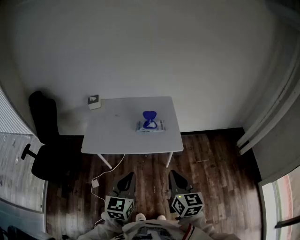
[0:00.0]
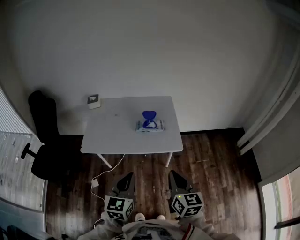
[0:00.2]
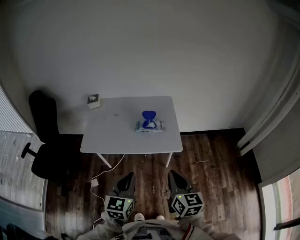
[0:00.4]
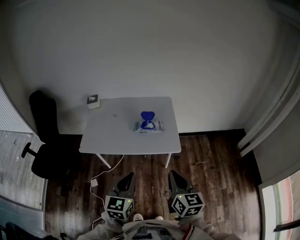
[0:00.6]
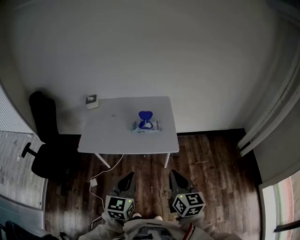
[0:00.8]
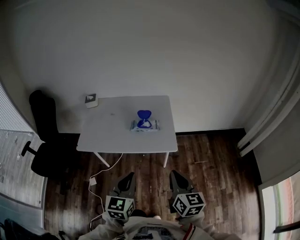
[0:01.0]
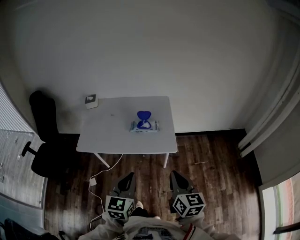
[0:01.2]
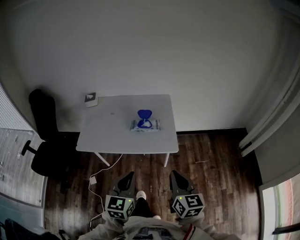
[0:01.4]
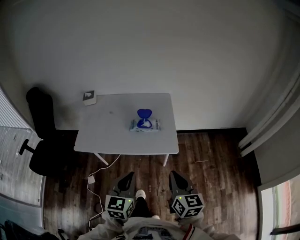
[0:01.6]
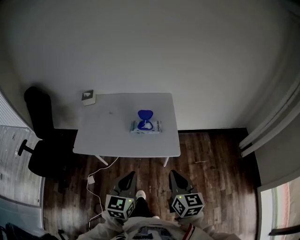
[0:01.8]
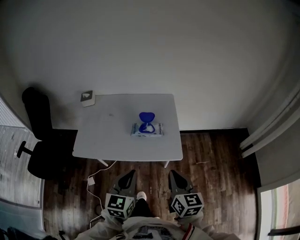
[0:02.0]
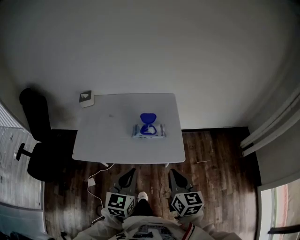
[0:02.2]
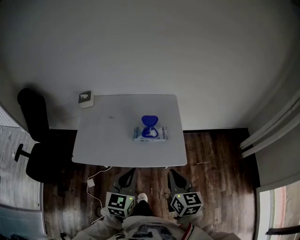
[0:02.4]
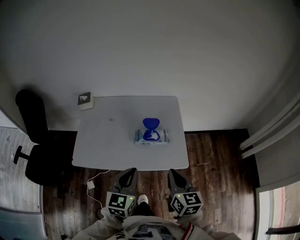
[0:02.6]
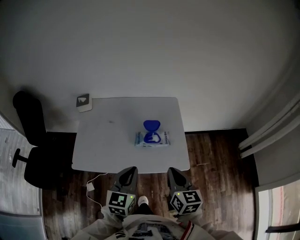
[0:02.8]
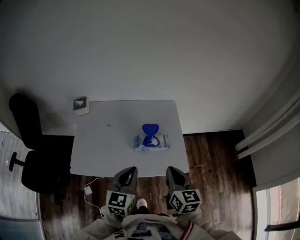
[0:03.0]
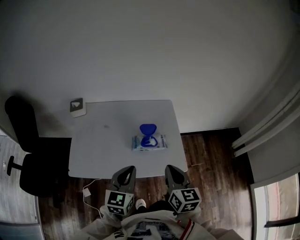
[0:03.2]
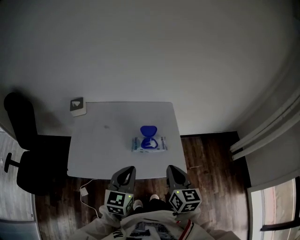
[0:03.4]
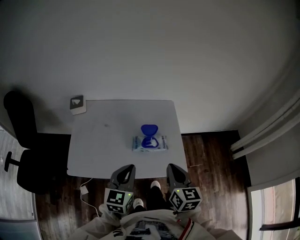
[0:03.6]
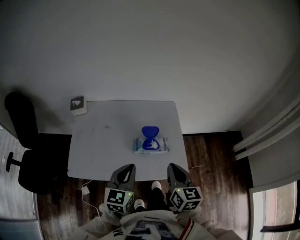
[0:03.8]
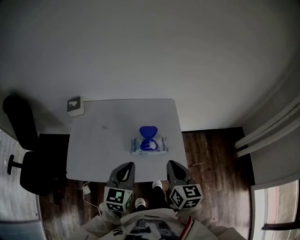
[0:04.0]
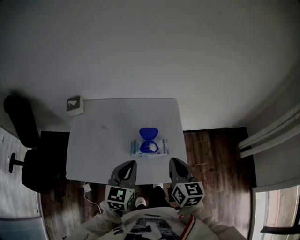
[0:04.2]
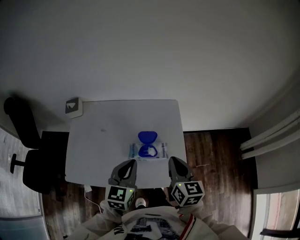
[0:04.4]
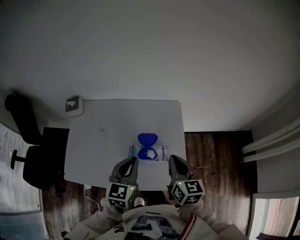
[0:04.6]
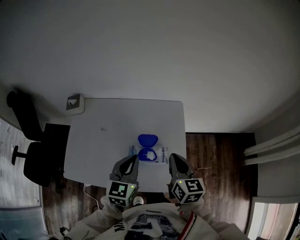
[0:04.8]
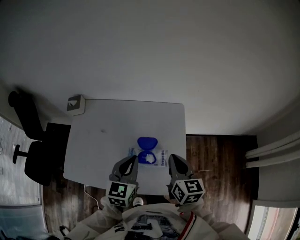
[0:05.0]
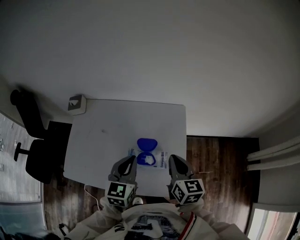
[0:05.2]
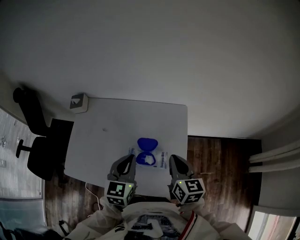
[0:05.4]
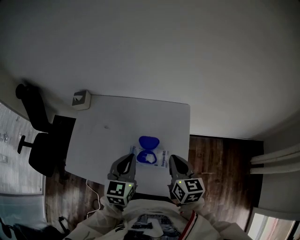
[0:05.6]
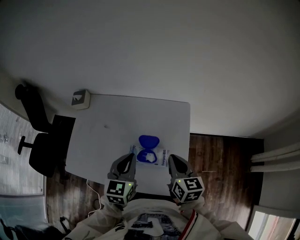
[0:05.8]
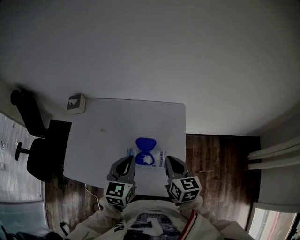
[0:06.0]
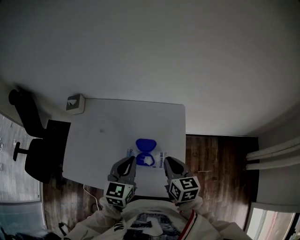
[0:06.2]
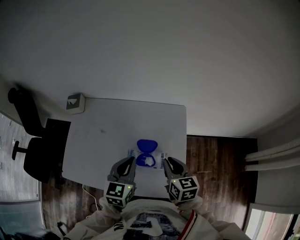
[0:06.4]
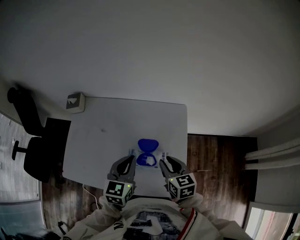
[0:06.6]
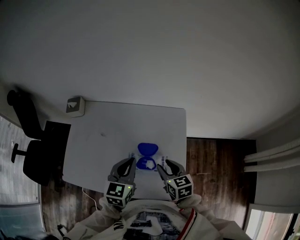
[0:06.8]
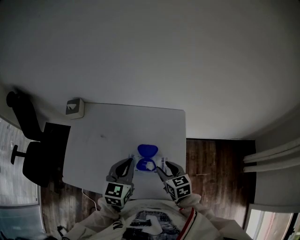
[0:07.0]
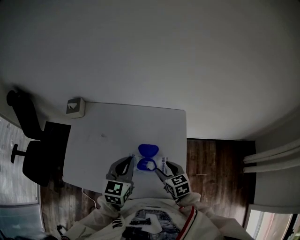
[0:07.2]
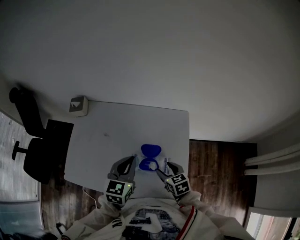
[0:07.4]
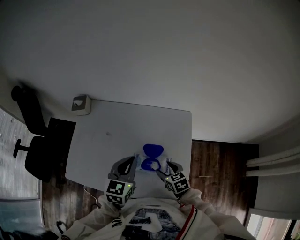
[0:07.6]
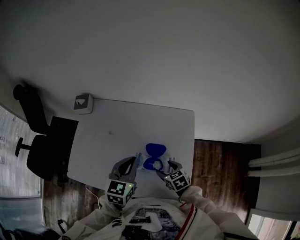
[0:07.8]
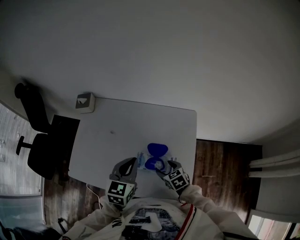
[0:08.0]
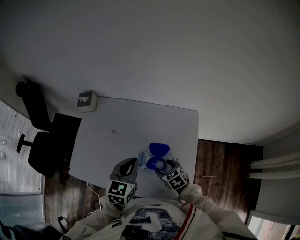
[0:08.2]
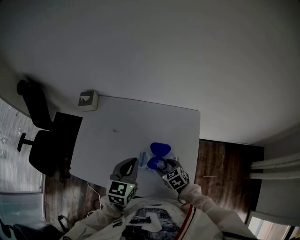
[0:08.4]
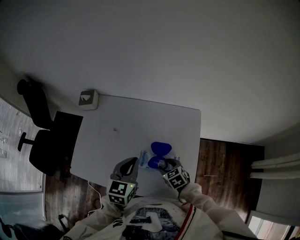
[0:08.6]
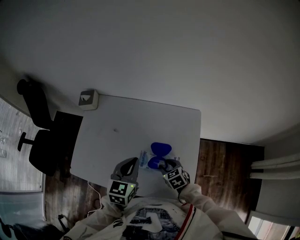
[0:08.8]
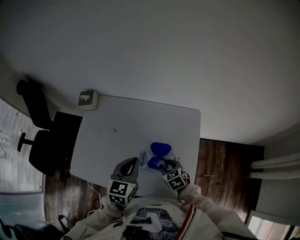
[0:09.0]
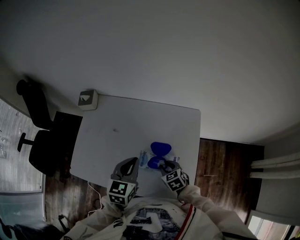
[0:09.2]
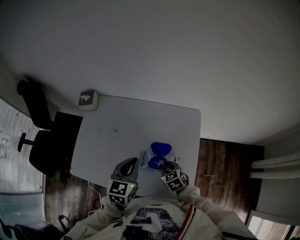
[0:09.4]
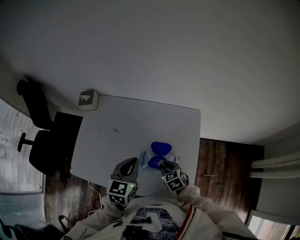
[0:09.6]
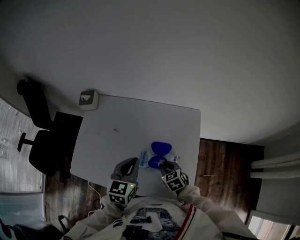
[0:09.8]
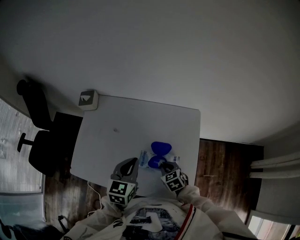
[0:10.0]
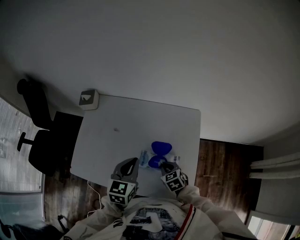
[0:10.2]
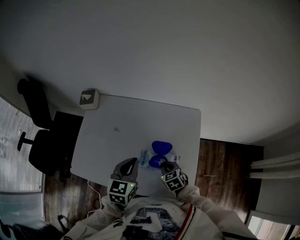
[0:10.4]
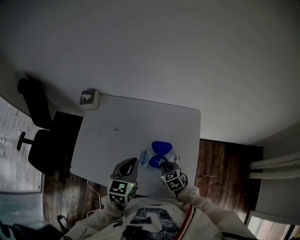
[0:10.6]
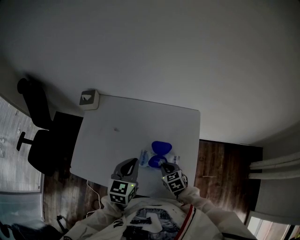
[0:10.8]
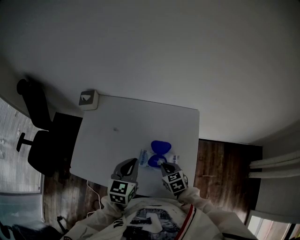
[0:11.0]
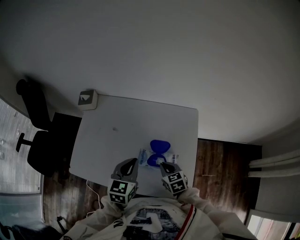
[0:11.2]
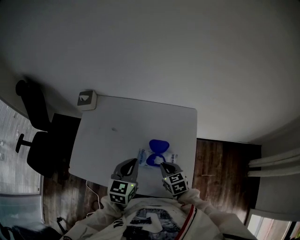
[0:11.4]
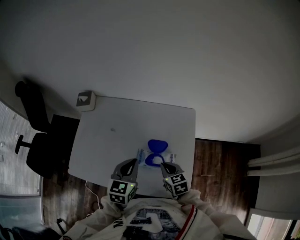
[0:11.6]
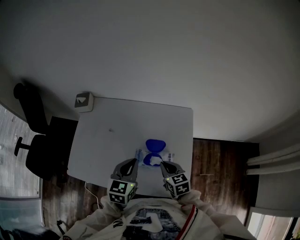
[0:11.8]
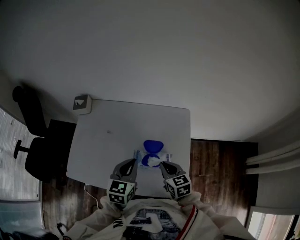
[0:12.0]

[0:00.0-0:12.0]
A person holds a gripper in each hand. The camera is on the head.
0:00.0 to 0:01.6: The grippers both shift to the right by some 5 cm.
0:01.6 to 0:03.0: Both grippers travel together forward and to the left, about 20 cm.
0:03.0 to 0:04.4: Both grippers travel together forward, roughly 15 cm.
0:04.4 to 0:06.0: The left gripper moves forward, approximately 5 cm. The right gripper heads forward and downward, covering some 10 cm.
0:06.0 to 0:07.6: The right gripper goes about 15 cm downward, changes its angle by about 30 degrees, and opens its fingers.
0:07.6 to 0:09.0: The right gripper closes.
0:09.0 to 0:10.4: The right gripper closes.
0:10.4 to 0:12.0: The right gripper heads upward, covering roughly 10 cm, and changes its angle by about 20 degrees.

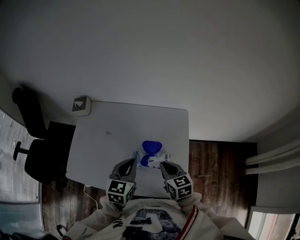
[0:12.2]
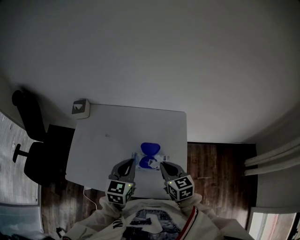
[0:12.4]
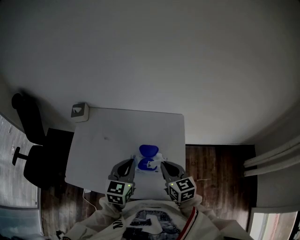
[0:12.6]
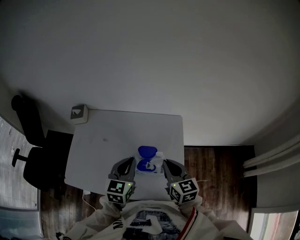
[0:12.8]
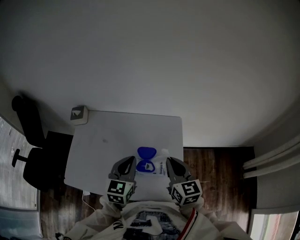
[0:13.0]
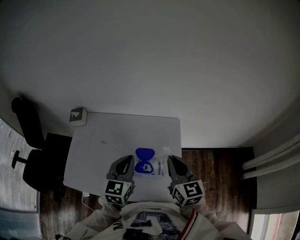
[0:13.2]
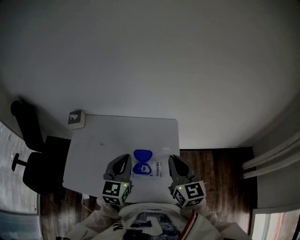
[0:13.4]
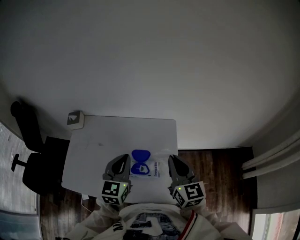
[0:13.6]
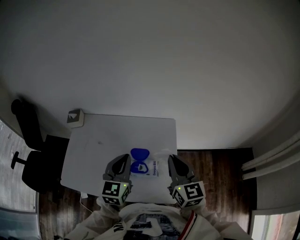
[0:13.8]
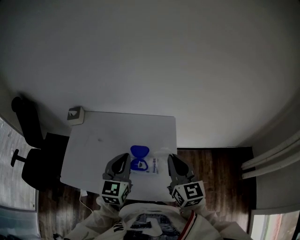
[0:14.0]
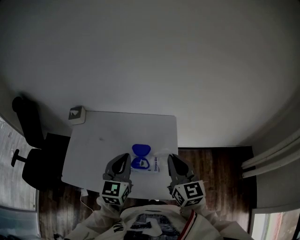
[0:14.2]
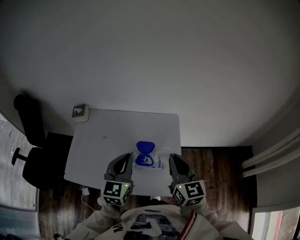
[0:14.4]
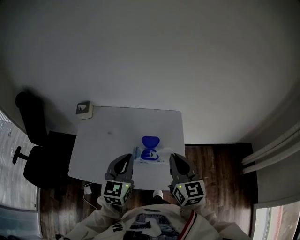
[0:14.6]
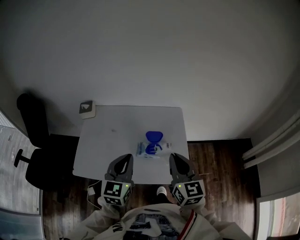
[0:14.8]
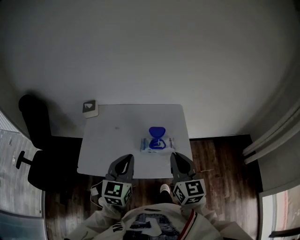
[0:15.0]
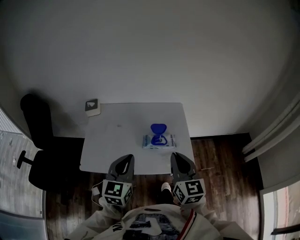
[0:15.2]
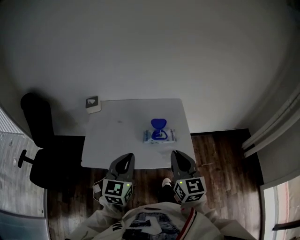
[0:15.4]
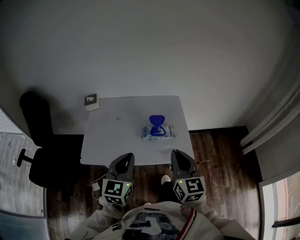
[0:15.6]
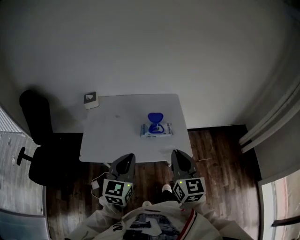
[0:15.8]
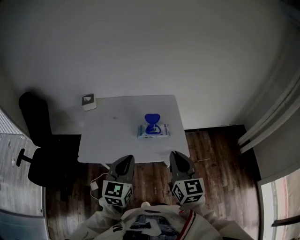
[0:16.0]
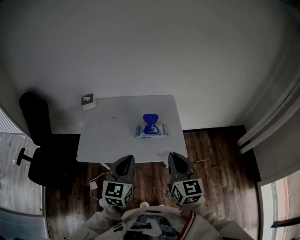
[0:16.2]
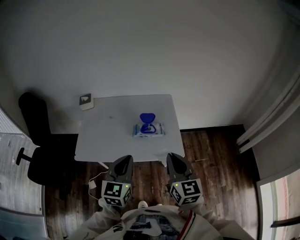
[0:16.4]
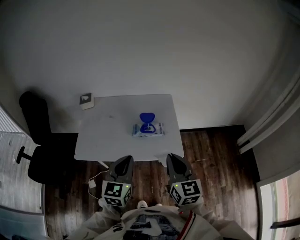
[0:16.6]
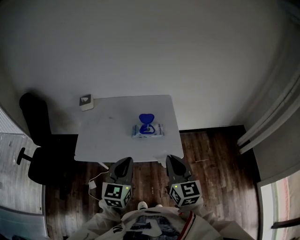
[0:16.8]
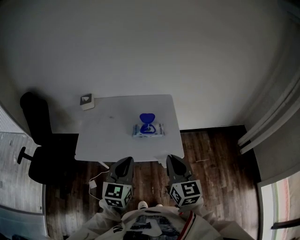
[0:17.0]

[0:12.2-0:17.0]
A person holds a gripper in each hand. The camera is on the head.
0:12.2 to 0:13.8: The right gripper moves upward and to the right, some 20 cm, and changes its angle by about 30 degrees. The left gripper moves upward, approximately 10 cm.
0:13.8 to 0:15.4: The two grippers go some 25 cm backward and to the left.
0:15.4 to 0:17.0: The left gripper moves to the right and backward, about 10 cm; the right gripper shifts some 10 cm backward and to the right.

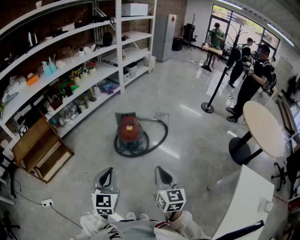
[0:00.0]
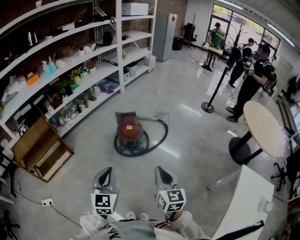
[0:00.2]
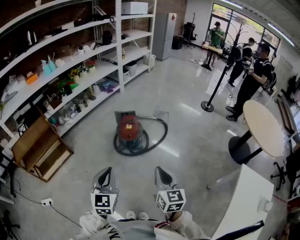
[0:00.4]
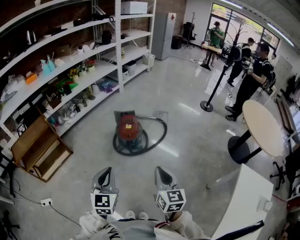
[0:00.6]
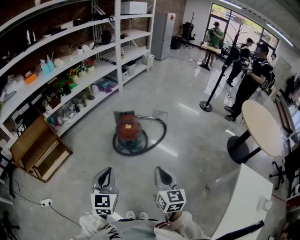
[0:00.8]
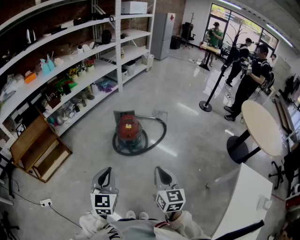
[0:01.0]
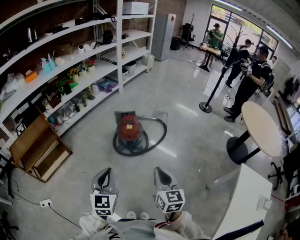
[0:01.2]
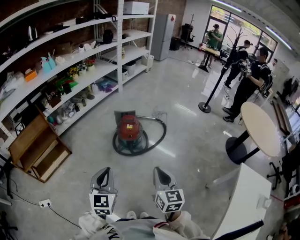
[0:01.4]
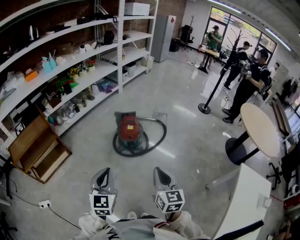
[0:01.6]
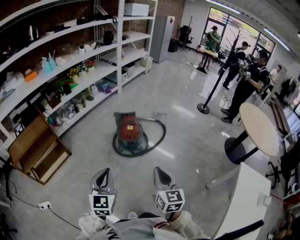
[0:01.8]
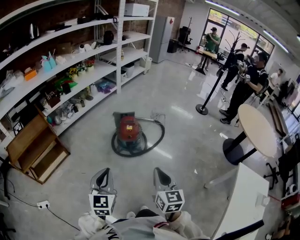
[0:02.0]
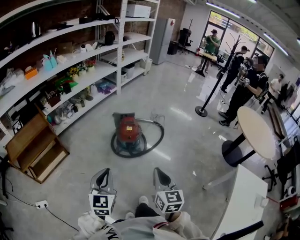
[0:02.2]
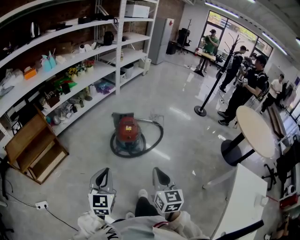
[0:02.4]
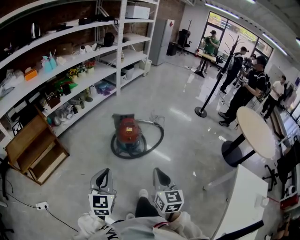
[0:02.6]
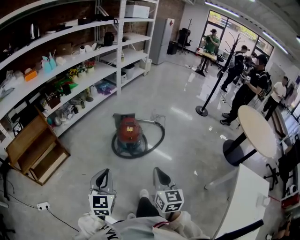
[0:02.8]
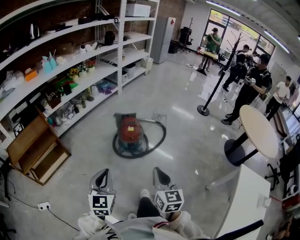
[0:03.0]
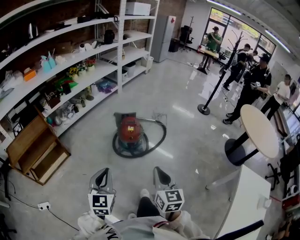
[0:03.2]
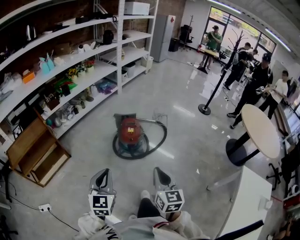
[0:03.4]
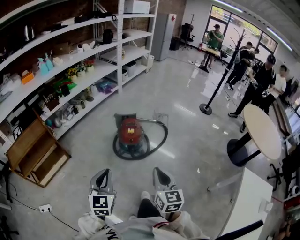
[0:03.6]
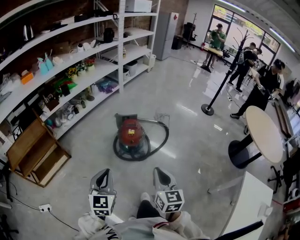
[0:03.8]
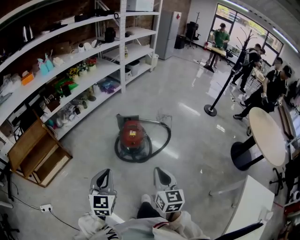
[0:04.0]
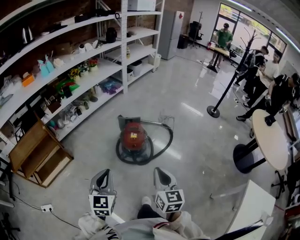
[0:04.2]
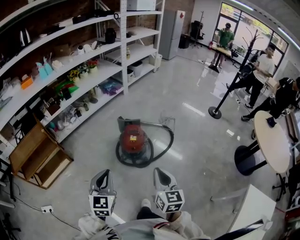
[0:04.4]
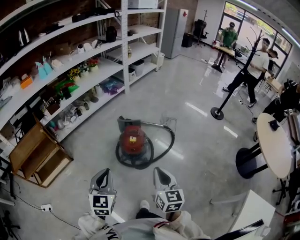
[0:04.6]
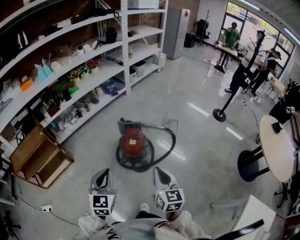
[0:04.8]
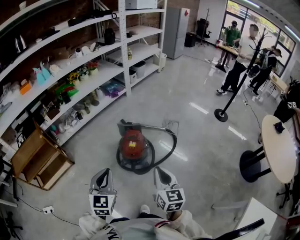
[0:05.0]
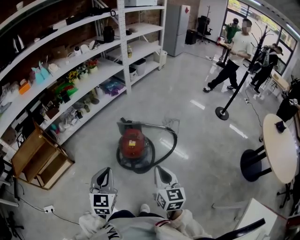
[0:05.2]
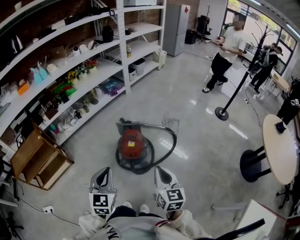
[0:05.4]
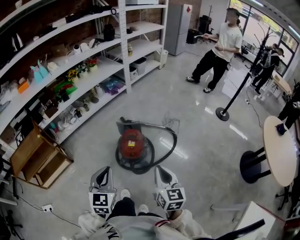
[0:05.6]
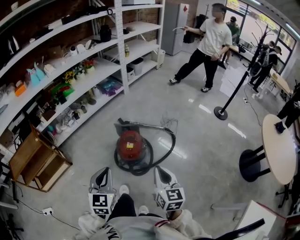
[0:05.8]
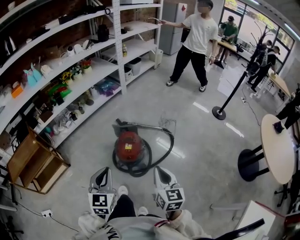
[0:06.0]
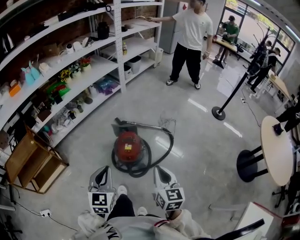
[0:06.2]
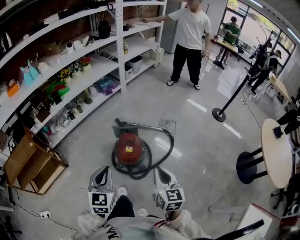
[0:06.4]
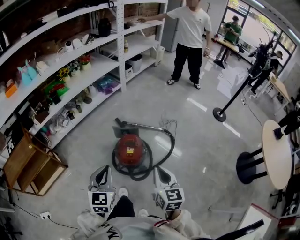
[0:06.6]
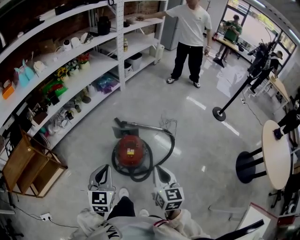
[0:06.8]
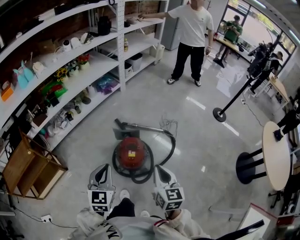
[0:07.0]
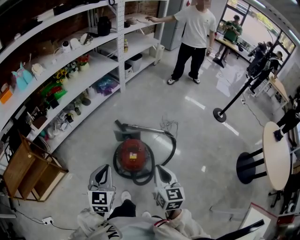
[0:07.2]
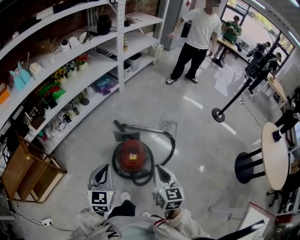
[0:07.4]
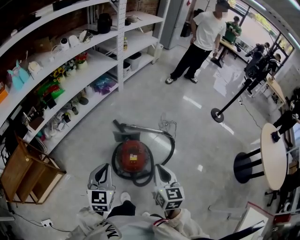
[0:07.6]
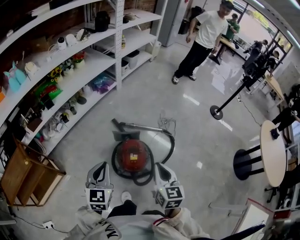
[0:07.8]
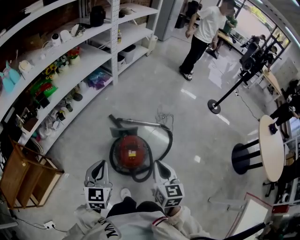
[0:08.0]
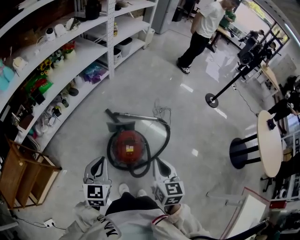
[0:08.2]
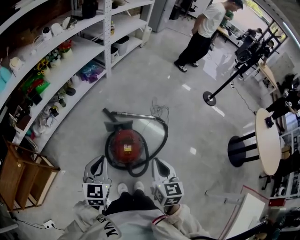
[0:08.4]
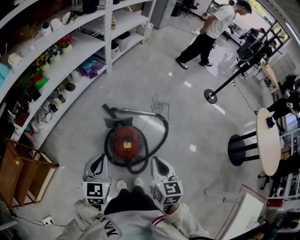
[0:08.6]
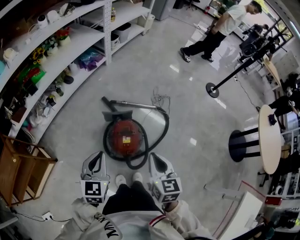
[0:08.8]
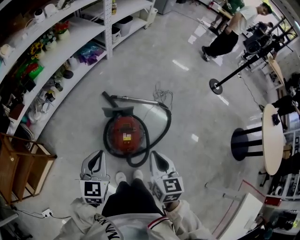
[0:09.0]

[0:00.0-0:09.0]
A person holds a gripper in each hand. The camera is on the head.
0:00.0 to 0:01.6: The grippers both shift to the left by roughly 5 cm.
0:01.6 to 0:03.0: The grippers stay close to where they were, moving slightly.
0:03.0 to 0:04.4: Both grippers travel together forward, some 15 cm.
0:04.4 to 0:06.0: Both grippers move forward and to the right, approximately 15 cm.
0:06.0 to 0:07.6: The grippers both shift forward and to the left by roughly 15 cm.
0:07.6 to 0:09.0: Both grippers travel together downward, approximately 5 cm.
